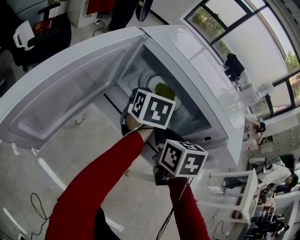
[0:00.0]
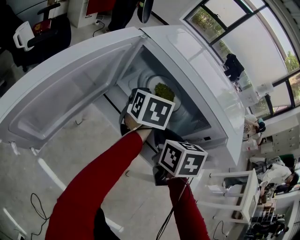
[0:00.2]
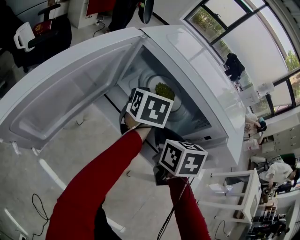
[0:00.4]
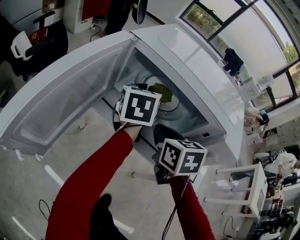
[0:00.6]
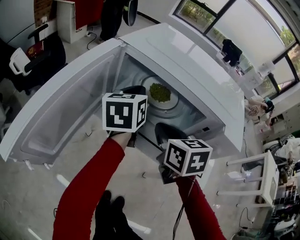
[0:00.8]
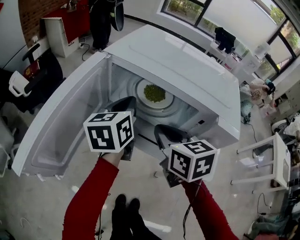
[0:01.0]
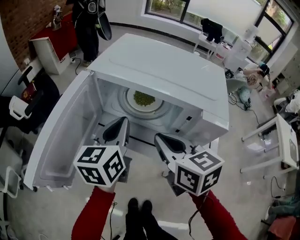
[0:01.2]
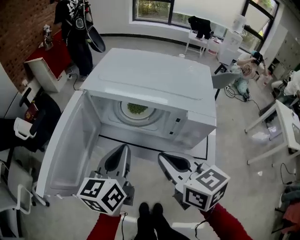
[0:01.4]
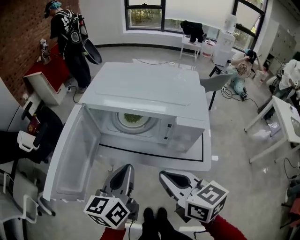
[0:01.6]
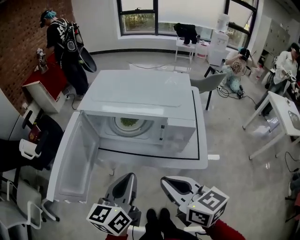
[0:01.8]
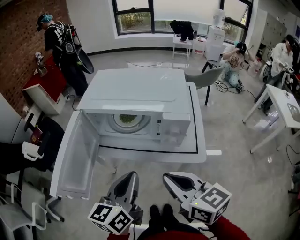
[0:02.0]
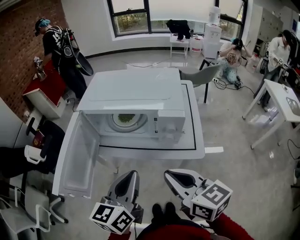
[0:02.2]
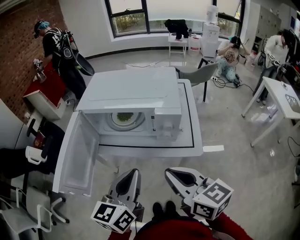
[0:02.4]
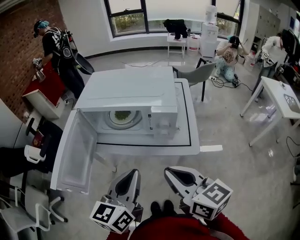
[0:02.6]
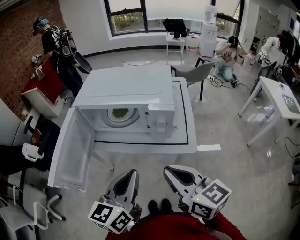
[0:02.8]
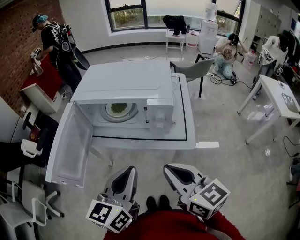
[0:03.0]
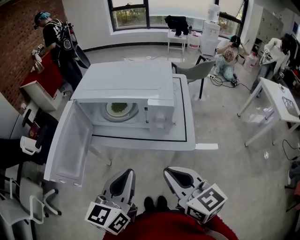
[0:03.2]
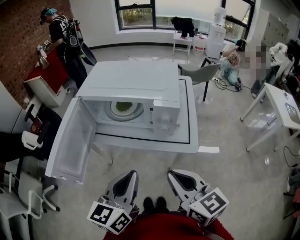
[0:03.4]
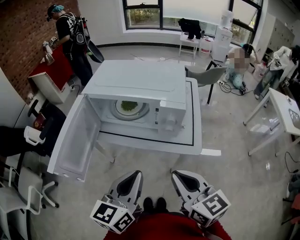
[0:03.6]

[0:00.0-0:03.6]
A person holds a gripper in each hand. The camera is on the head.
0:00.0 to 0:01.8: The right gripper is displaced backward and upward by roughly 25 cm, and rotates roughly 30 degrees, while the left gripper goes some 25 cm backward, turns by approximately 30 degrees, and closes up.
0:01.8 to 0:03.6: The left gripper is displaced backward by about 10 cm; the right gripper goes some 10 cm backward and to the right.

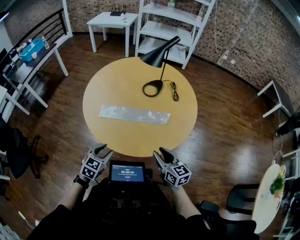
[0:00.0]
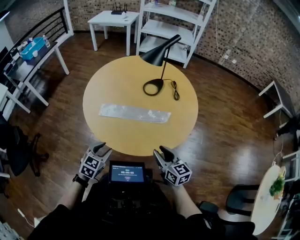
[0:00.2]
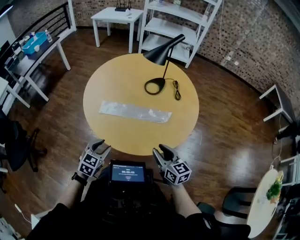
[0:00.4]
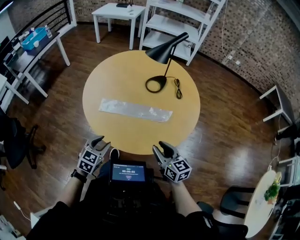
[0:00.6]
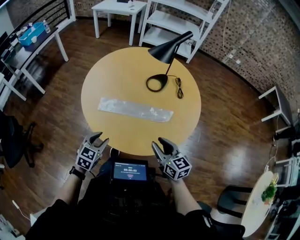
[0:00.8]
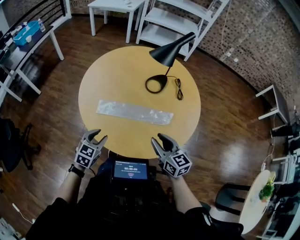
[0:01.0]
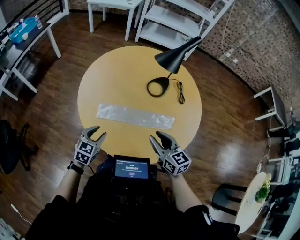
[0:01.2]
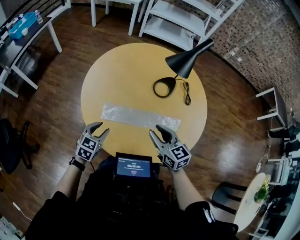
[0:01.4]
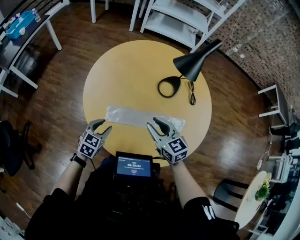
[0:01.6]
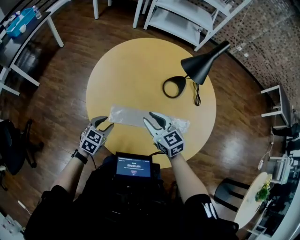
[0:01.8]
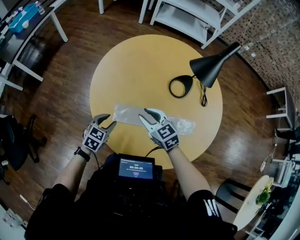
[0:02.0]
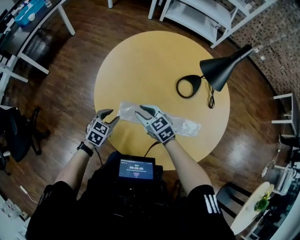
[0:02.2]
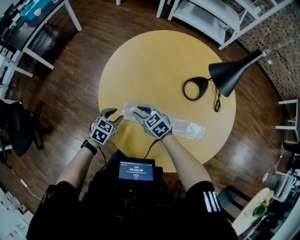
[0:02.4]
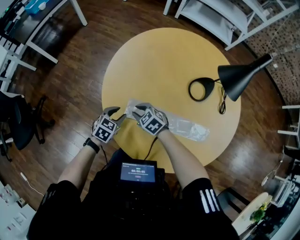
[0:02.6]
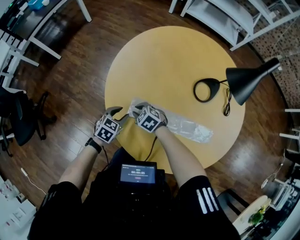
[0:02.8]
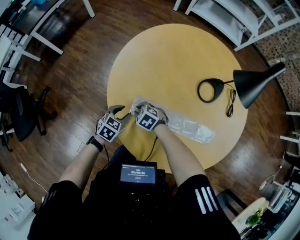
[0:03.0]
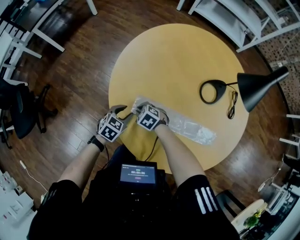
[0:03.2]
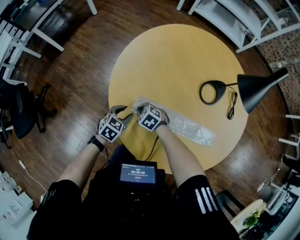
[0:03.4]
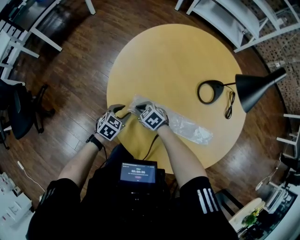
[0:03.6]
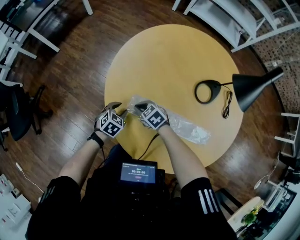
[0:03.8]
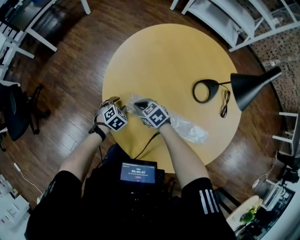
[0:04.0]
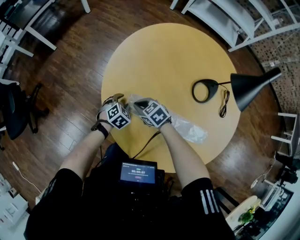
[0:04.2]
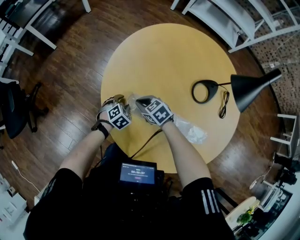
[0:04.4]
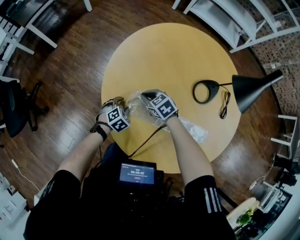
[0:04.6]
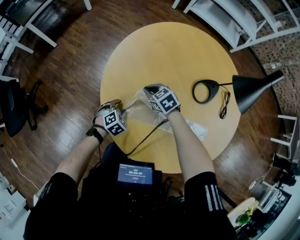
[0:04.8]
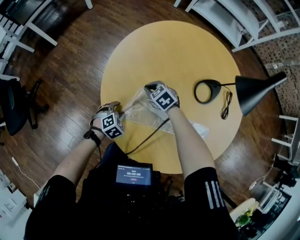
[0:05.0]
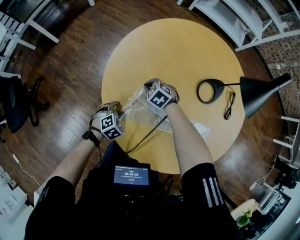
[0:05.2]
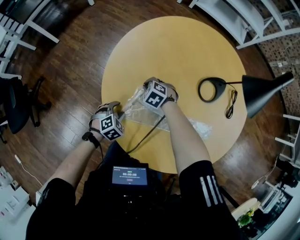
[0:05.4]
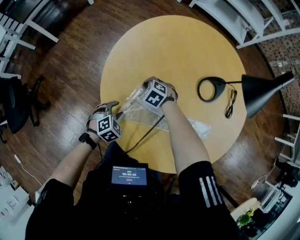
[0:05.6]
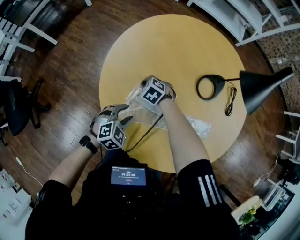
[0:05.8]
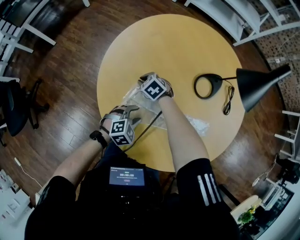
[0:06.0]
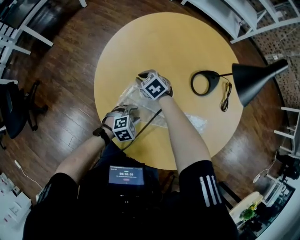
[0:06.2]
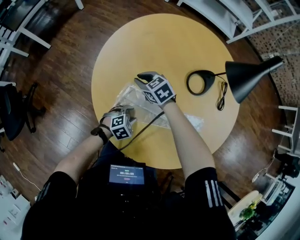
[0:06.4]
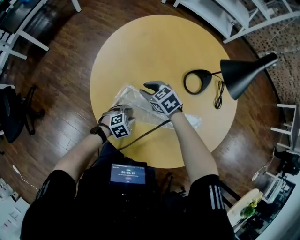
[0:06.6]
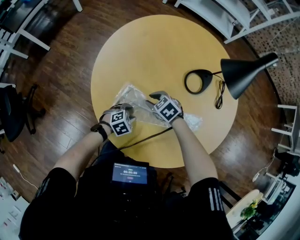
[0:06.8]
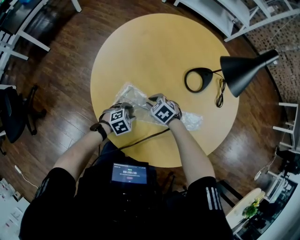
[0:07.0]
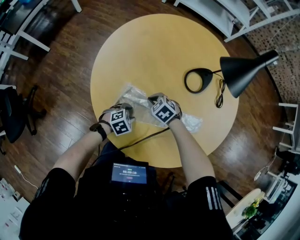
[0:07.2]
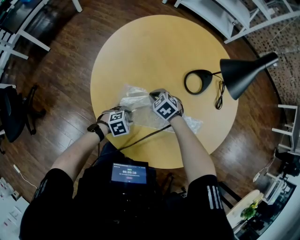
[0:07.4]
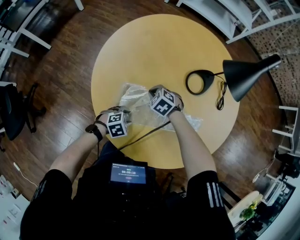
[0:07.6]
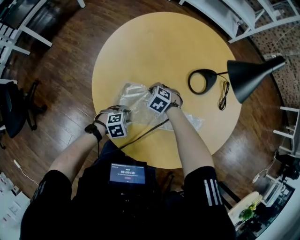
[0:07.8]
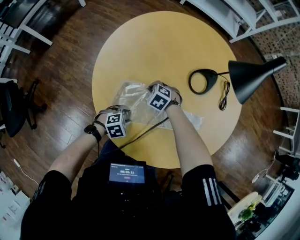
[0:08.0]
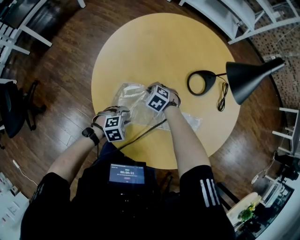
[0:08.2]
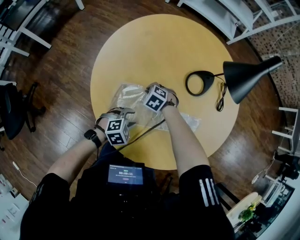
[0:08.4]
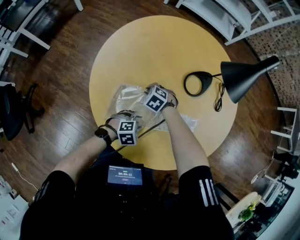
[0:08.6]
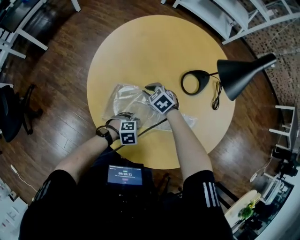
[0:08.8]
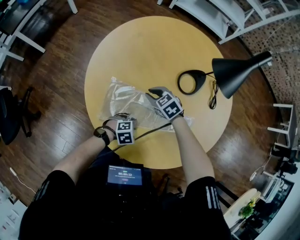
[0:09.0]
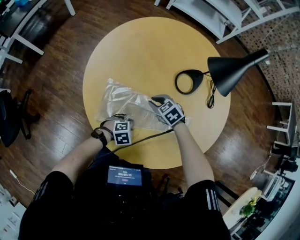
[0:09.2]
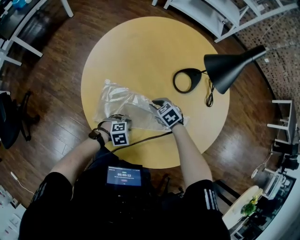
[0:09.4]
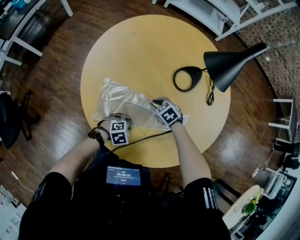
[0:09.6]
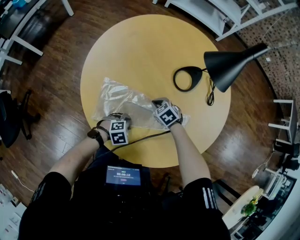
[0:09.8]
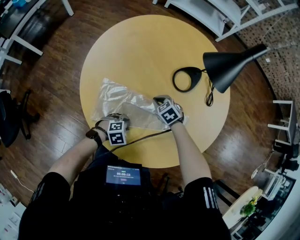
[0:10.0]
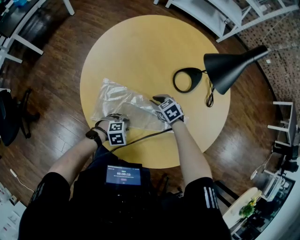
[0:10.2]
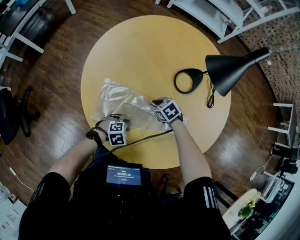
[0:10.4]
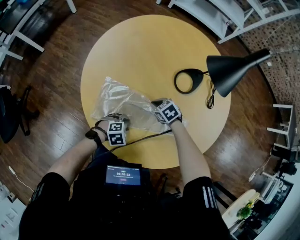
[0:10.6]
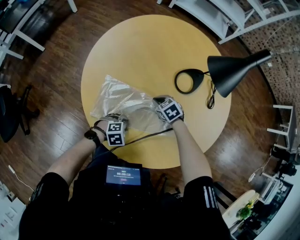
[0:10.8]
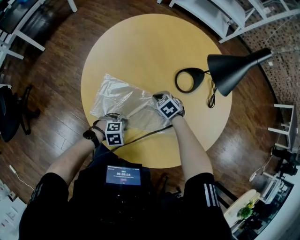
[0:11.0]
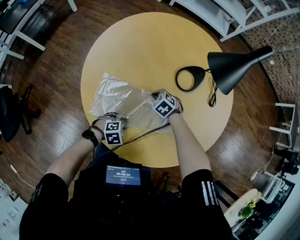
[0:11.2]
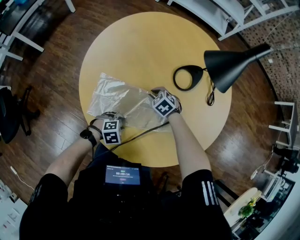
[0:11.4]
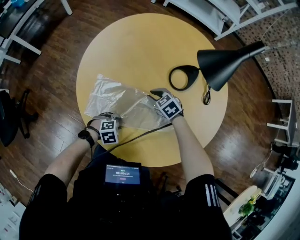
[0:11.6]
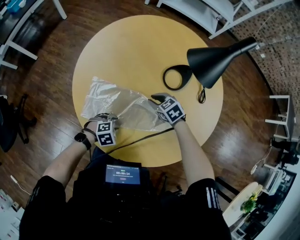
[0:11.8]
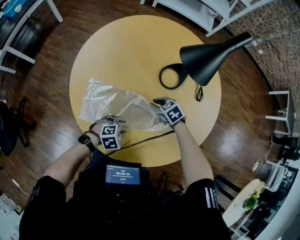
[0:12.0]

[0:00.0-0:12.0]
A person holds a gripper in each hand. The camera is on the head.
0:00.0 to 0:01.6: The grippers both shift forward and to the left by about 30 cm.
0:01.6 to 0:03.0: The right gripper moves downward, approximately 30 cm, and points its fingers about 40 degrees further downward; the left gripper goes about 10 cm downward.
0:03.0 to 0:04.4: The right gripper changes place by some 10 cm, while the left gripper travels downward by about 5 cm, and rotates roughly 20 degrees.
0:04.4 to 0:06.0: The left gripper heads backward, to the right and upward, covering some 15 cm, and changes its angle by roughly 20 degrees; the right gripper goes some 10 cm forward.
0:06.0 to 0:07.6: The left gripper heads downward, covering approximately 5 cm, and rotates some 20 degrees. Meanwhile the right gripper goes upward and returns, some 10 cm each way.
0:07.6 to 0:09.0: The left gripper changes place by approximately 5 cm, while the right gripper shifts by roughly 5 cm, and opens up.
0:09.0 to 0:10.4: The right gripper changes place by approximately 10 cm, and closes and opens again.
0:10.4 to 0:12.0: The left gripper shifts by roughly 5 cm. Meanwhile the right gripper changes place by approximately 5 cm, and closes, then reopens.

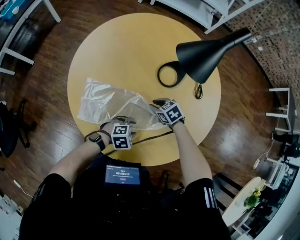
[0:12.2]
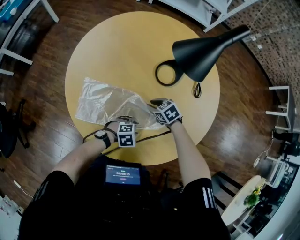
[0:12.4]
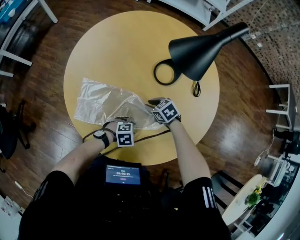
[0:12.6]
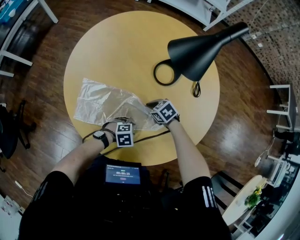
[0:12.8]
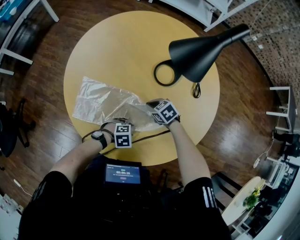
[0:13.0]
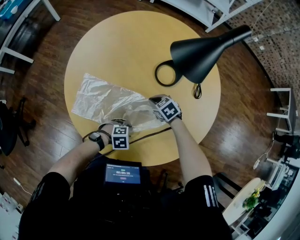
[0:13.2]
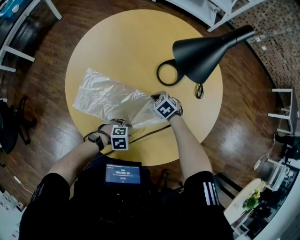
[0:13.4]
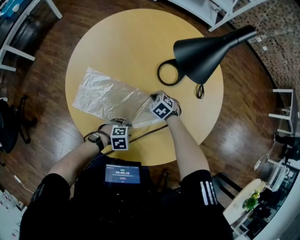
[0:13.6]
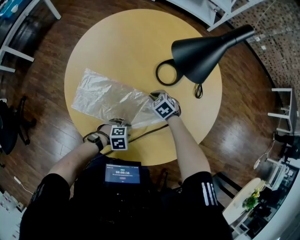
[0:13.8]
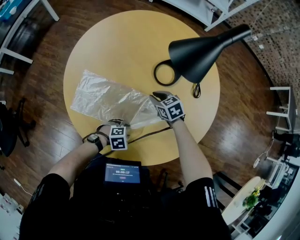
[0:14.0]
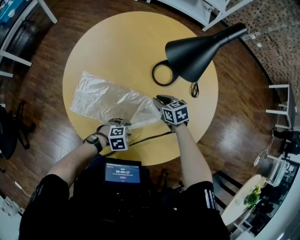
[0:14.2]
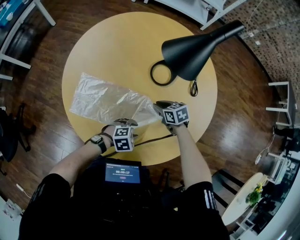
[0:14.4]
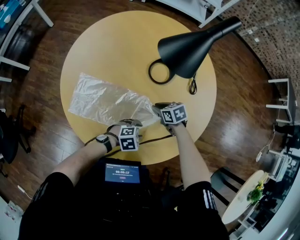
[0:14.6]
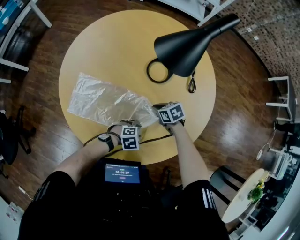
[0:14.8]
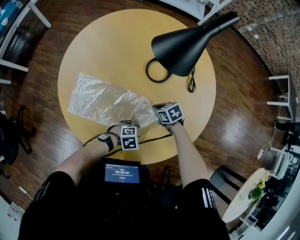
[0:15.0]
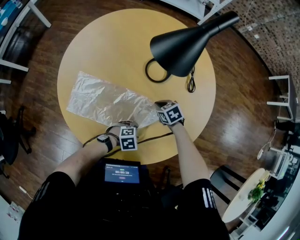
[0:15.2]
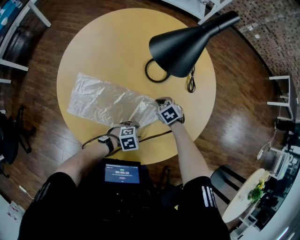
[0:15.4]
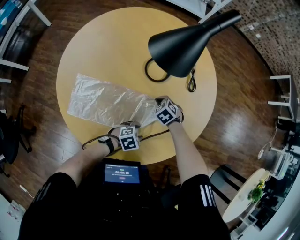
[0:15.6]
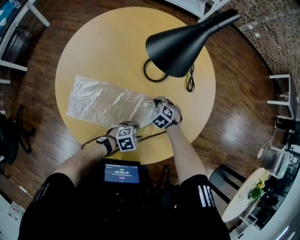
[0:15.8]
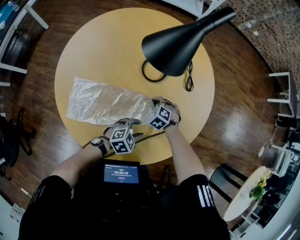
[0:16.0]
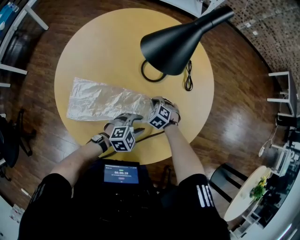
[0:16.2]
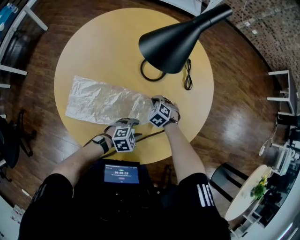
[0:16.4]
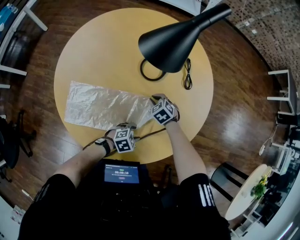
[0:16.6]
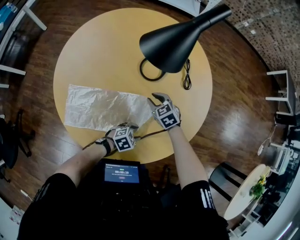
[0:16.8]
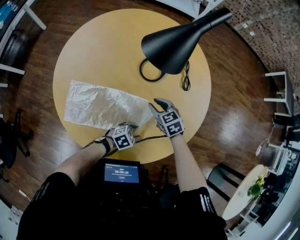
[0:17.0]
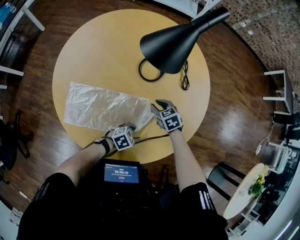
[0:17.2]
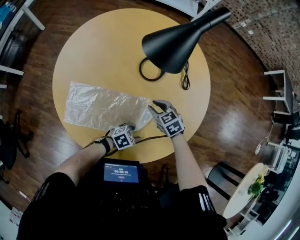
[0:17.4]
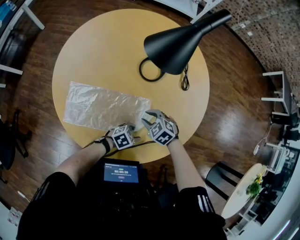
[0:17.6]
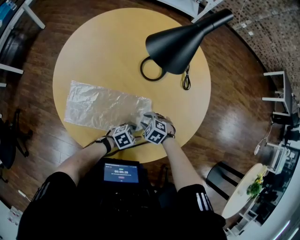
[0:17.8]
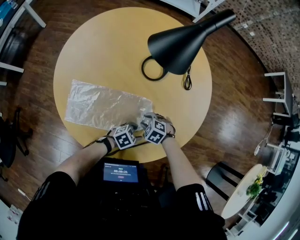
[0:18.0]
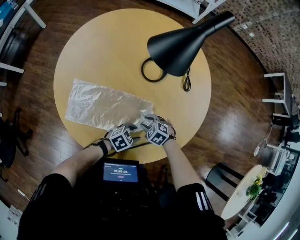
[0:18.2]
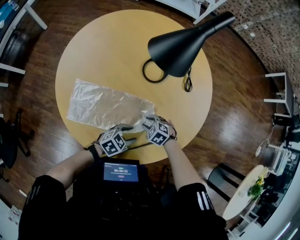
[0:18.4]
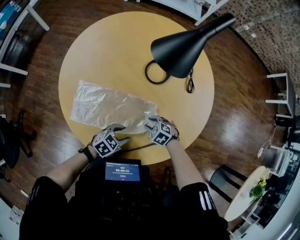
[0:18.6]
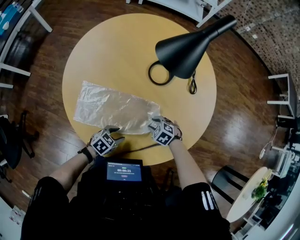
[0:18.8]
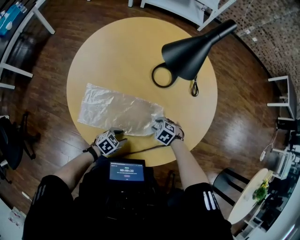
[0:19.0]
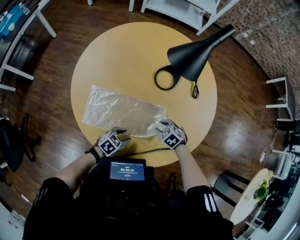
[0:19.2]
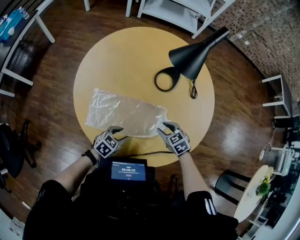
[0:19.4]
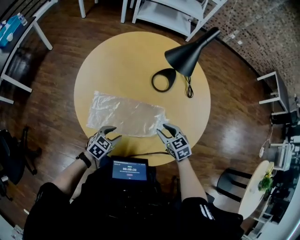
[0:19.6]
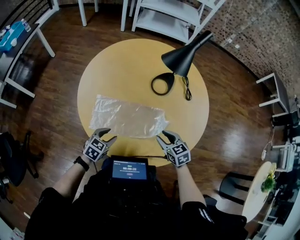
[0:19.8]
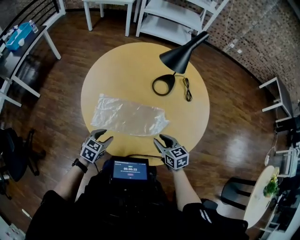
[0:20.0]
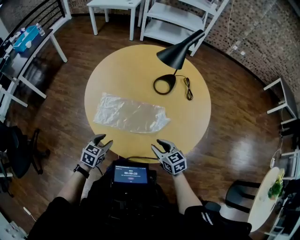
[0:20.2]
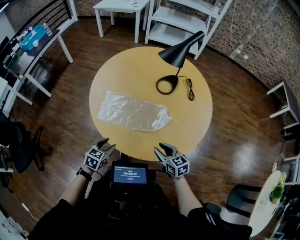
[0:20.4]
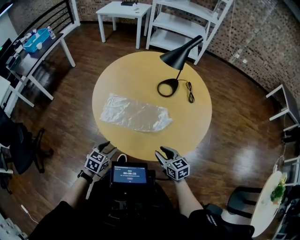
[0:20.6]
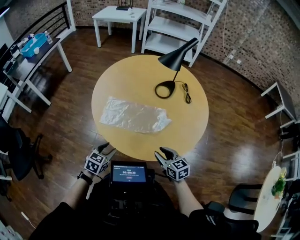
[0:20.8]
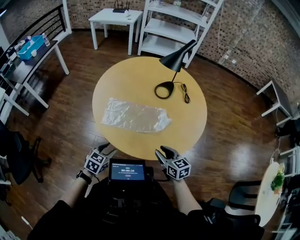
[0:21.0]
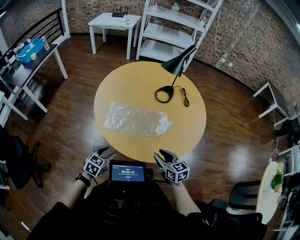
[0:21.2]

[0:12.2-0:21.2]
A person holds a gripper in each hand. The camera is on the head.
0:12.2 to 0:13.8: The left gripper changes place by some 5 cm.
0:13.8 to 0:15.2: The left gripper changes place by about 10 cm. The right gripper changes place by approximately 10 cm, and changes its angle by some 20 degrees.
0:15.2 to 0:16.6: The right gripper rotates some 20 degrees. The left gripper moves about 10 cm upward and comes back.
0:16.6 to 0:18.2: The right gripper goes up and down, roughly 10 cm each way, reversing 3 times, and opens its fingers.
0:18.2 to 0:19.8: The left gripper moves about 30 cm, and swivels approximately 30 degrees. The right gripper shifts about 20 cm upward, and changes its angle by approximately 40 degrees.
0:19.8 to 0:21.2: The right gripper heads backward, covering some 15 cm; the left gripper is displaced backward and to the left by roughly 20 cm.
